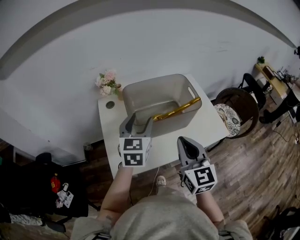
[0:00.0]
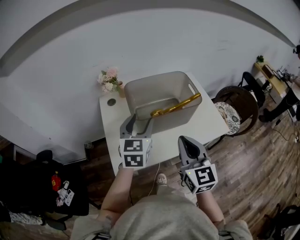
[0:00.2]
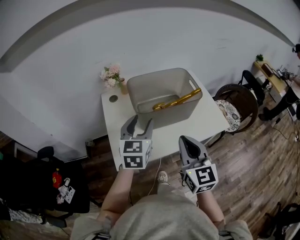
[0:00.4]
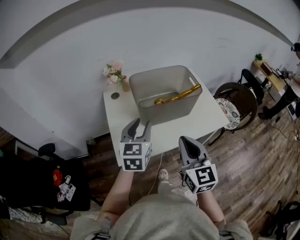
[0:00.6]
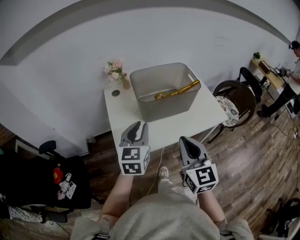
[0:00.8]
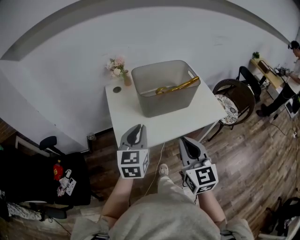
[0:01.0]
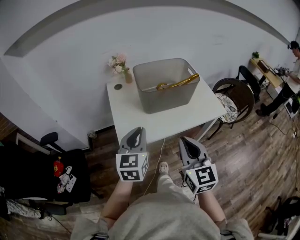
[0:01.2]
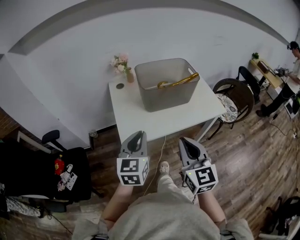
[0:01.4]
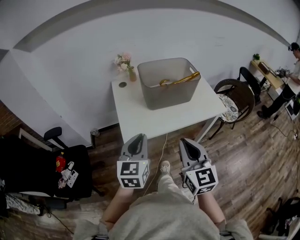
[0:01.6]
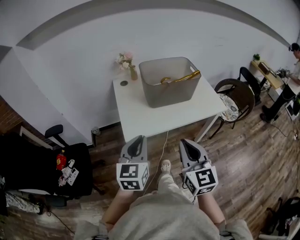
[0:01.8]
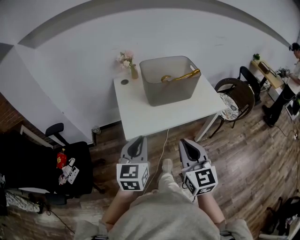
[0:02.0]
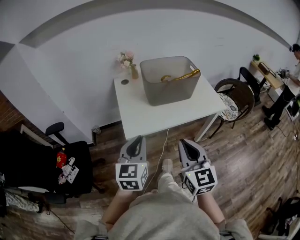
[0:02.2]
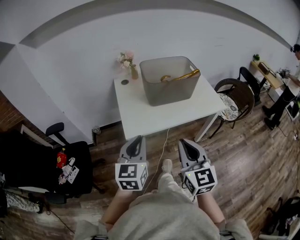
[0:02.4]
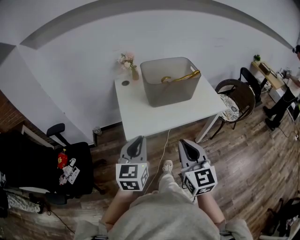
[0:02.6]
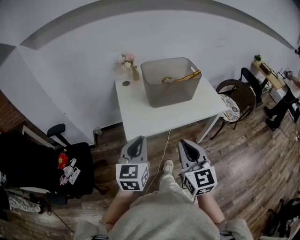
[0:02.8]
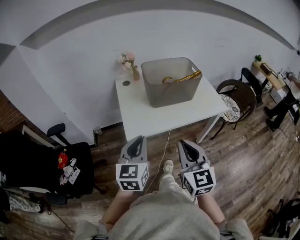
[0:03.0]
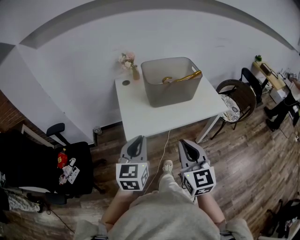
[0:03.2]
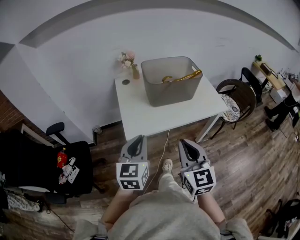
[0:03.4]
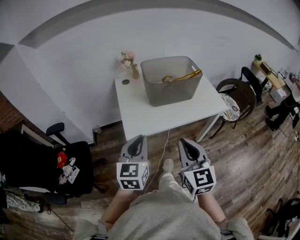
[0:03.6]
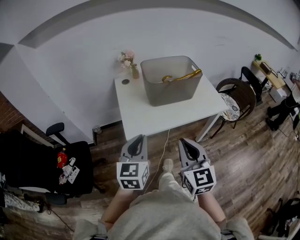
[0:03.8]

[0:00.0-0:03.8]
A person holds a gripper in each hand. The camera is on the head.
0:00.0 to 0:01.2: Both grippers travel together backward, approximately 20 cm. The left gripper closes its fingers.
0:01.2 to 0:02.6: The grippers both shift backward by approximately 10 cm.
0:02.6 to 0:03.8: Neither gripper changes place.

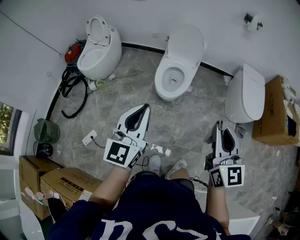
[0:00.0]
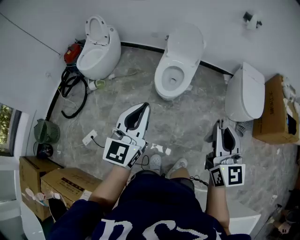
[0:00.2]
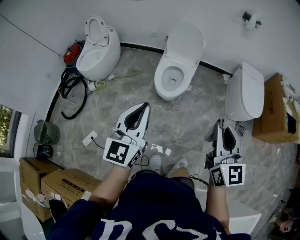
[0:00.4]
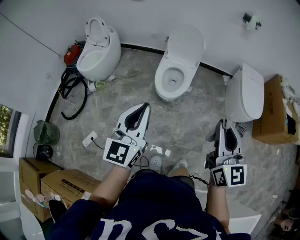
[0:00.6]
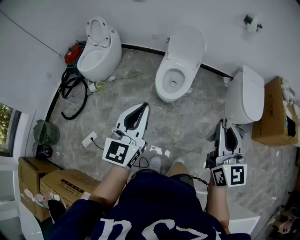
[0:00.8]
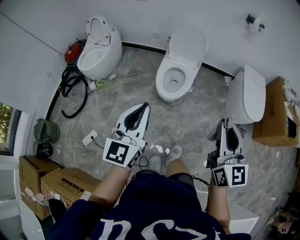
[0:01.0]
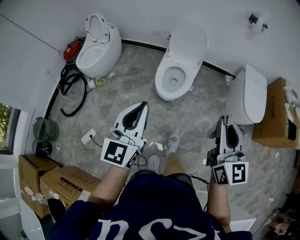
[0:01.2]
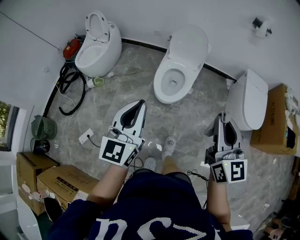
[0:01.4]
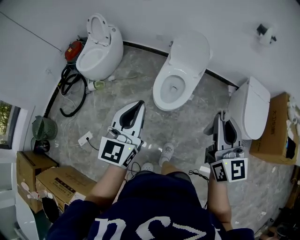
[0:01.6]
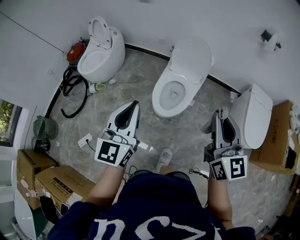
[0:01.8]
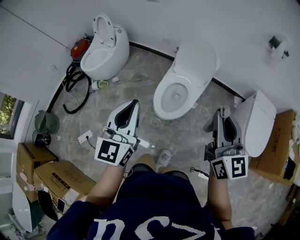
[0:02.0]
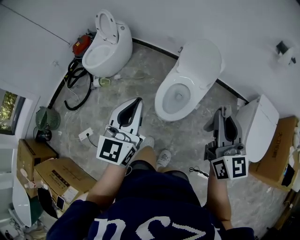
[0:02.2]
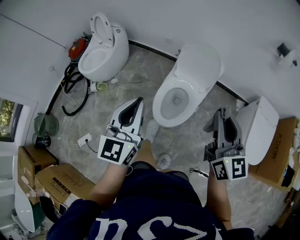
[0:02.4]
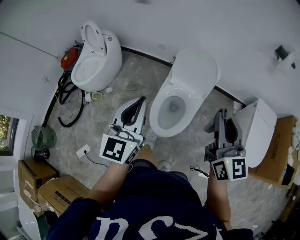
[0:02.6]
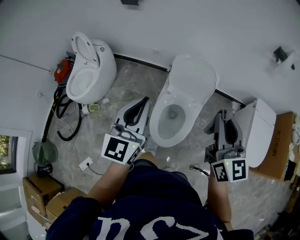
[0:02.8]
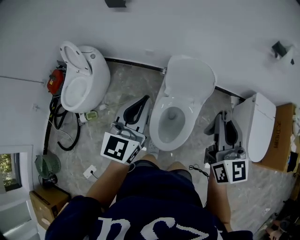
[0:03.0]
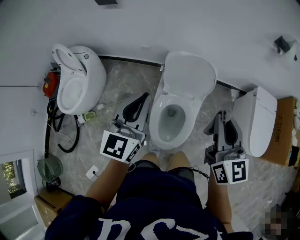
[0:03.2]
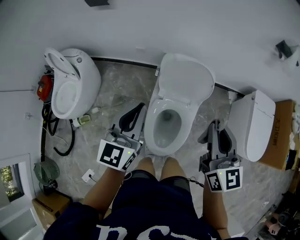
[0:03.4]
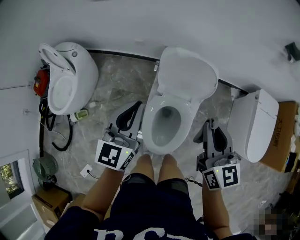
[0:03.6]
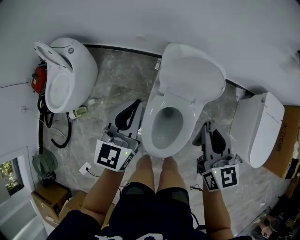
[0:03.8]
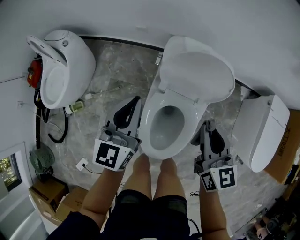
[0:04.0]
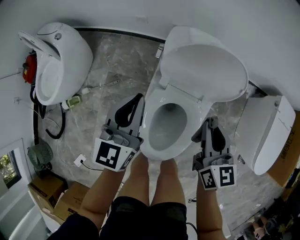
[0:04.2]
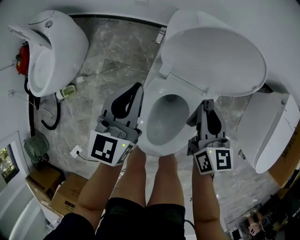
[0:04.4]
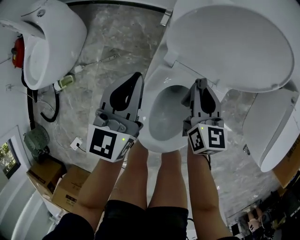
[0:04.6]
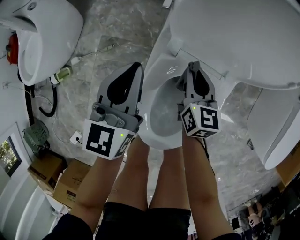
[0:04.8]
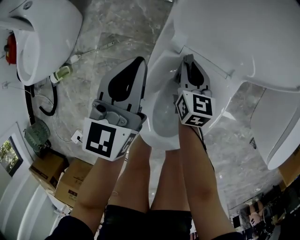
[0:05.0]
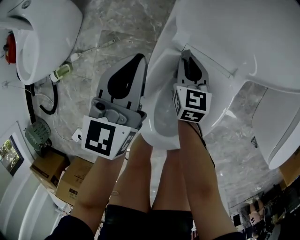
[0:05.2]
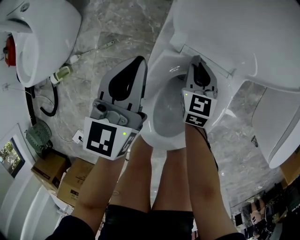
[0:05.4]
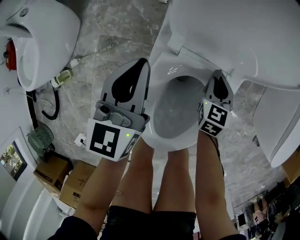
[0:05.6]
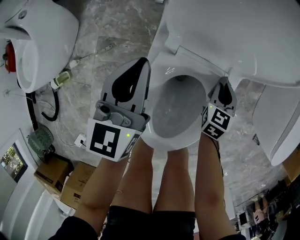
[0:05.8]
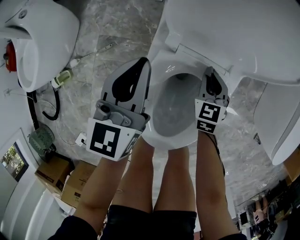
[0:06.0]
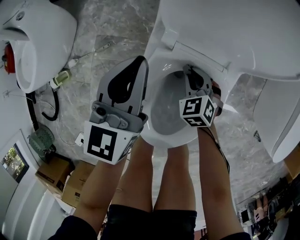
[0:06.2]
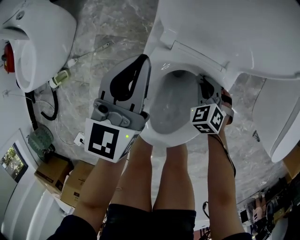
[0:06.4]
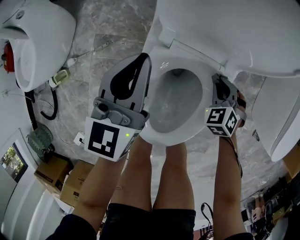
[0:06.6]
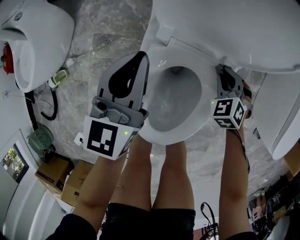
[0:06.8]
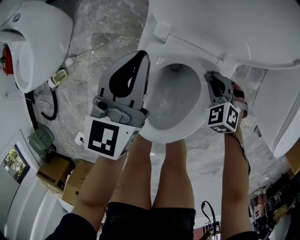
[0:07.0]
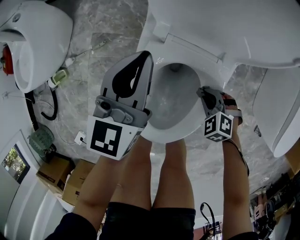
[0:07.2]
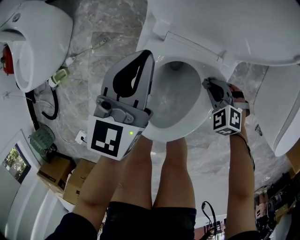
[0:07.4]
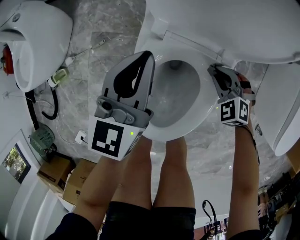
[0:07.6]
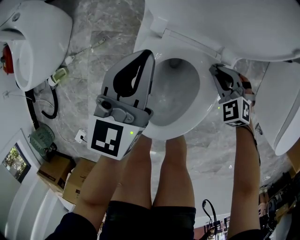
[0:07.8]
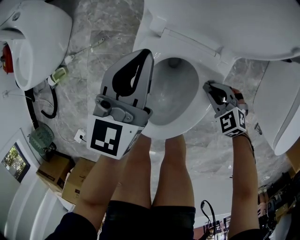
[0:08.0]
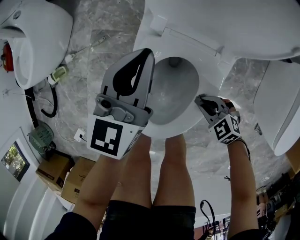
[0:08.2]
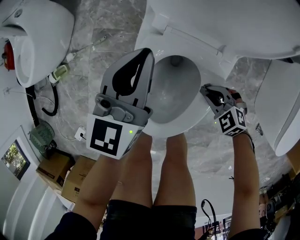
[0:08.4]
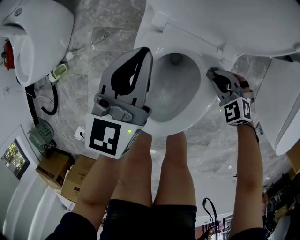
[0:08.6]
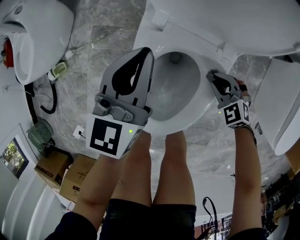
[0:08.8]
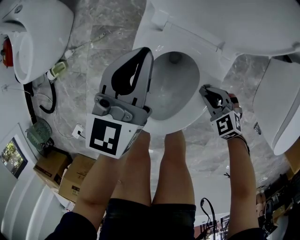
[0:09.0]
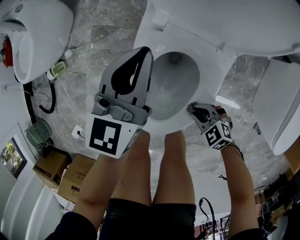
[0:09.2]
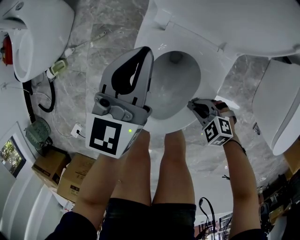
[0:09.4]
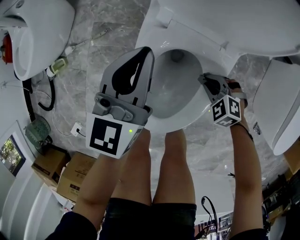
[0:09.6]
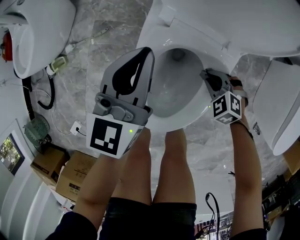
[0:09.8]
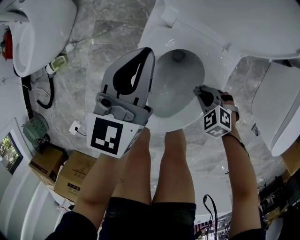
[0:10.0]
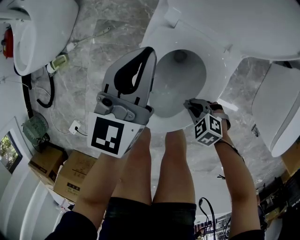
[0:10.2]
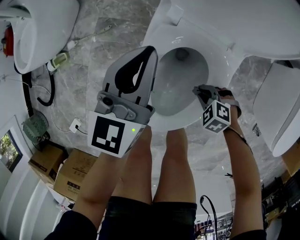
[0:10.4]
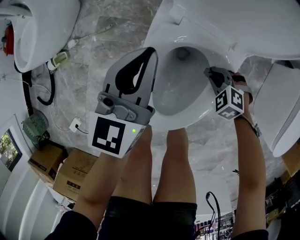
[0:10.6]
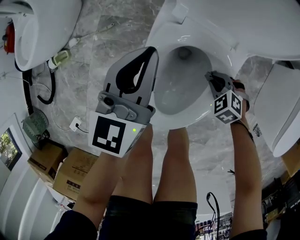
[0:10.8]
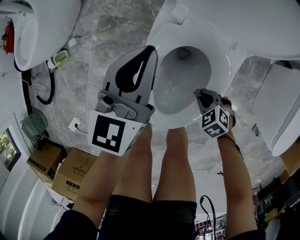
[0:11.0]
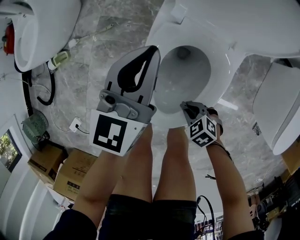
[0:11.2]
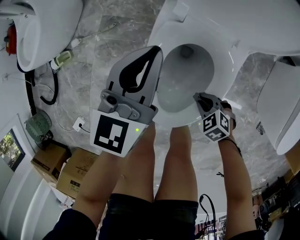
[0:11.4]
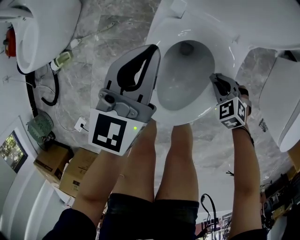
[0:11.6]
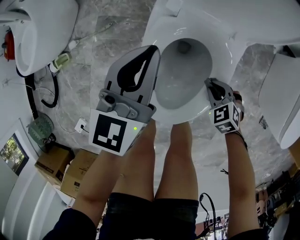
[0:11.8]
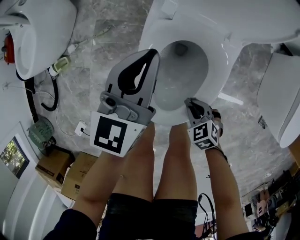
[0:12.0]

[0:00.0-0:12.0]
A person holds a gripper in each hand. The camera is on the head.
0:00.0 to 0:01.6: The two grippers go approximately 20 cm forward.
0:01.6 to 0:03.0: Both grippers are carried forward, roughly 50 cm.
0:03.0 to 0:04.4: Both grippers move downward and forward, roughly 50 cm. The right gripper swivels about 30 degrees.
0:04.4 to 0:06.0: The right gripper goes about 25 cm downward, and swivels some 40 degrees. Meanwhile the left gripper shifts roughly 15 cm downward.
0:06.0 to 0:07.6: The left gripper shifts roughly 5 cm to the right. Meanwhile the right gripper goes forward and backward, about 15 cm each way, reversing 3 times, and rolls counterclockwise, seen from behind, by some 50 degrees.
0:07.6 to 0:09.0: The right gripper goes forward and backward, roughly 15 cm each way, reversing 2 times, and turns by some 20 degrees.
0:09.0 to 0:10.4: The right gripper moves forward and backward over roughly 10 cm, changing direction 2 times, and changes its angle by about 30 degrees.
0:10.4 to 0:12.0: The right gripper ends up roughly 10 cm from where it was, and rotates some 30 degrees.

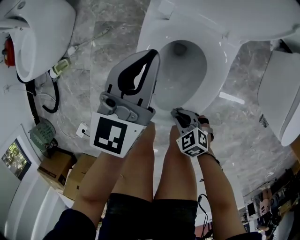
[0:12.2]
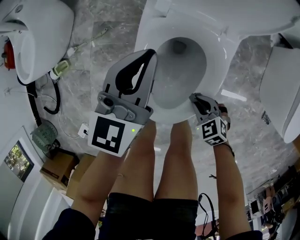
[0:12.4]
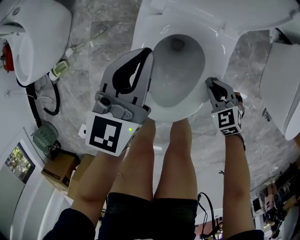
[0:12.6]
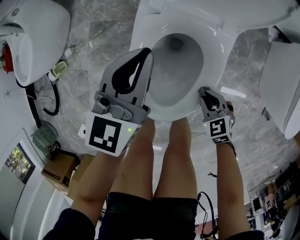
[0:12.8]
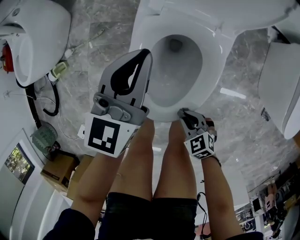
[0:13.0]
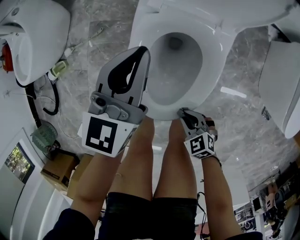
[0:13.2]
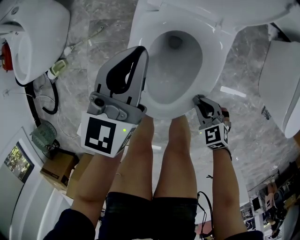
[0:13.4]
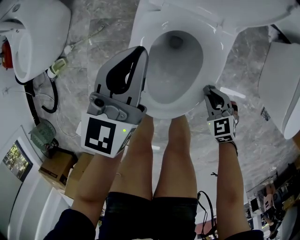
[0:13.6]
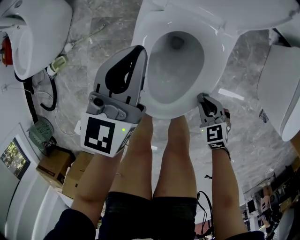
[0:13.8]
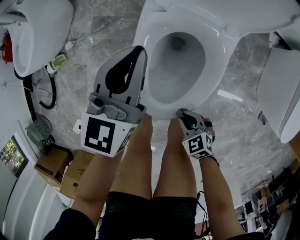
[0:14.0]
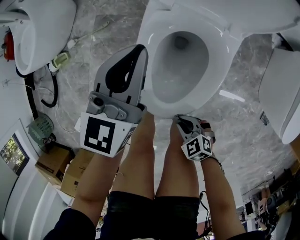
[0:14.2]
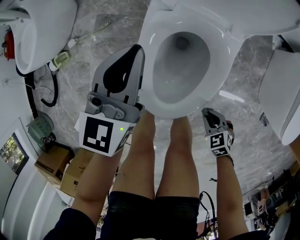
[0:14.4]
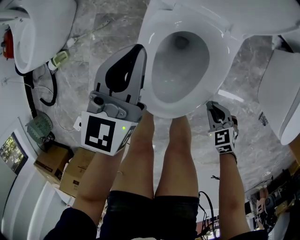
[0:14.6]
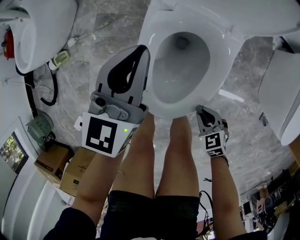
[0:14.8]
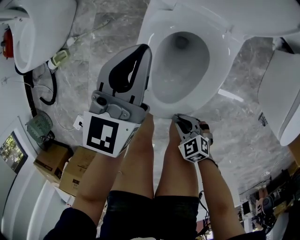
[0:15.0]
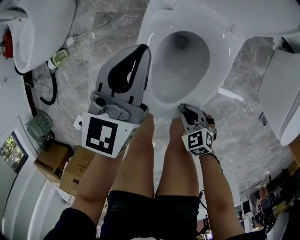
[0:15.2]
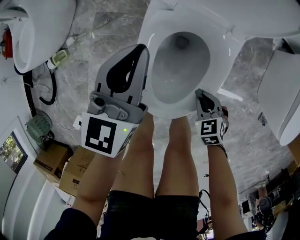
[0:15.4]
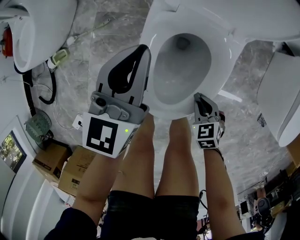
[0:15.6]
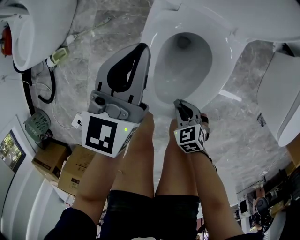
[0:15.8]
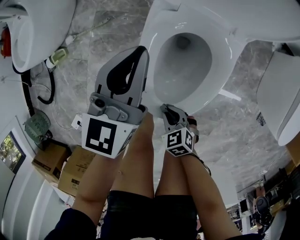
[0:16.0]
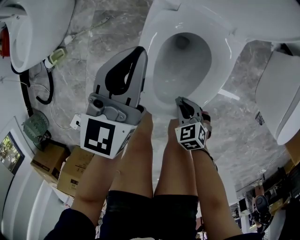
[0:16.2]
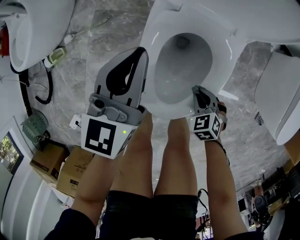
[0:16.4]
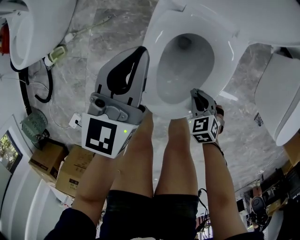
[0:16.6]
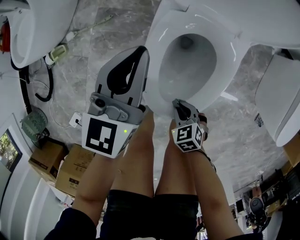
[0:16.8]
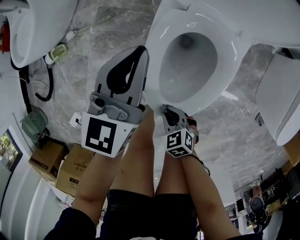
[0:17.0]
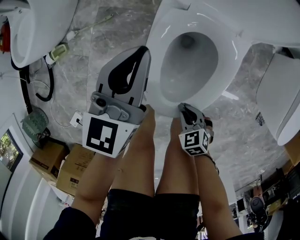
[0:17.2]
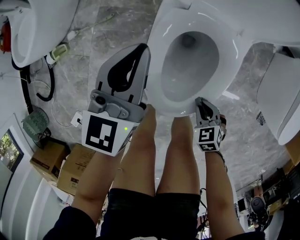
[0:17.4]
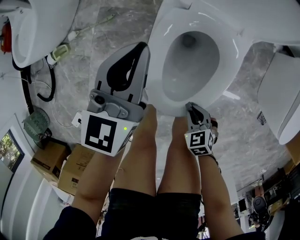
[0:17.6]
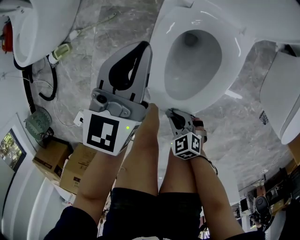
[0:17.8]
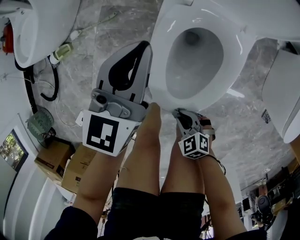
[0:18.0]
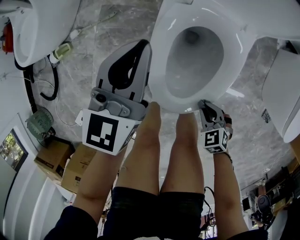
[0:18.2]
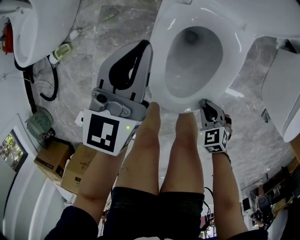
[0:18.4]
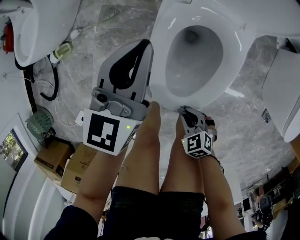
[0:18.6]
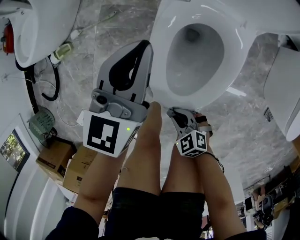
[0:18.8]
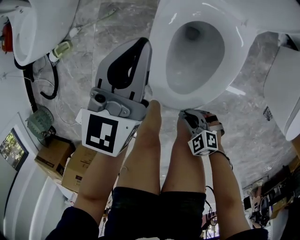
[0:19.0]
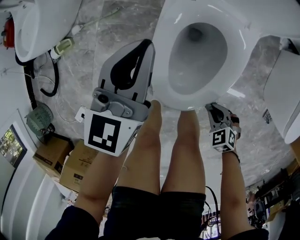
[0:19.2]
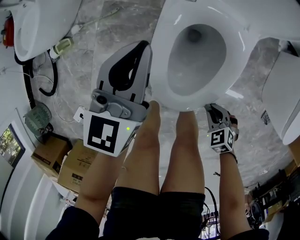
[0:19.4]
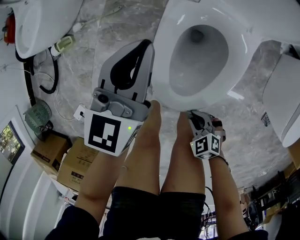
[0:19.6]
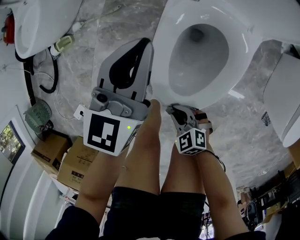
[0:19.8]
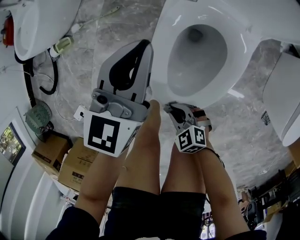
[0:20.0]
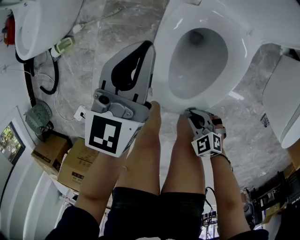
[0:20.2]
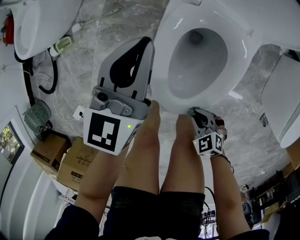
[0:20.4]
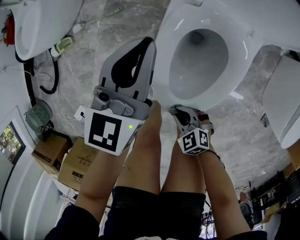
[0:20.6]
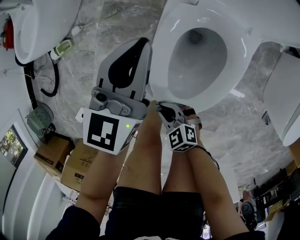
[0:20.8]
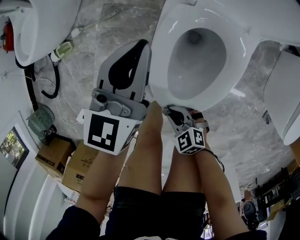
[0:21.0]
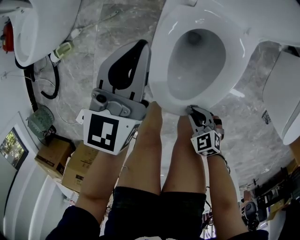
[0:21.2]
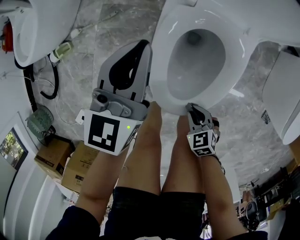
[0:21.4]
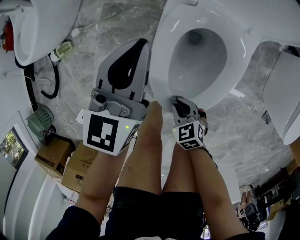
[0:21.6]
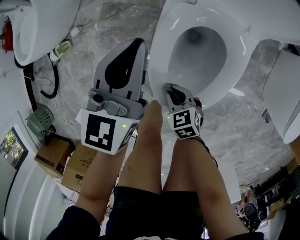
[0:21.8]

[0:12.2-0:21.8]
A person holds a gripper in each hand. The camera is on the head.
0:12.2 to 0:13.8: The right gripper goes left and right, some 15 cm each way, reversing 2 times.
0:13.8 to 0:15.4: The right gripper goes left and right, about 15 cm each way, reversing 3 times.
0:15.4 to 0:17.0: The right gripper goes left and right, roughly 15 cm each way, reversing 2 times; the left gripper heads to the left, covering roughly 5 cm.
0:17.0 to 0:18.6: The right gripper swings left and right, approximately 15 cm each way, with 3 reversals.
0:18.6 to 0:20.2: The right gripper swings left and right, roughly 15 cm each way, with 3 reversals.
0:20.2 to 0:21.8: The right gripper swings left and right, roughly 10 cm each way, with 2 reversals, and rotates some 30 degrees.
